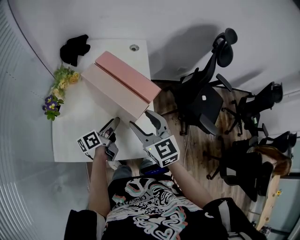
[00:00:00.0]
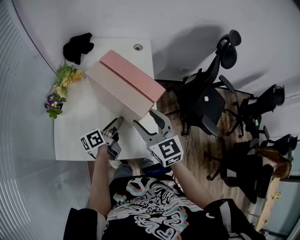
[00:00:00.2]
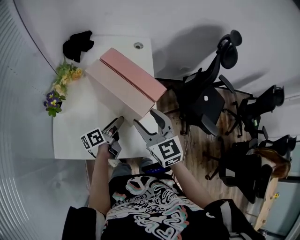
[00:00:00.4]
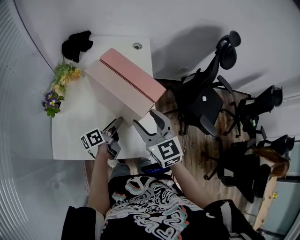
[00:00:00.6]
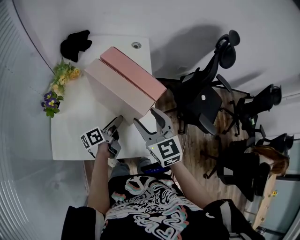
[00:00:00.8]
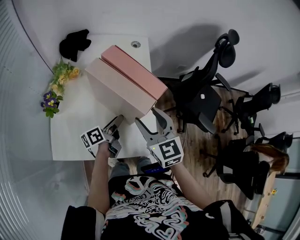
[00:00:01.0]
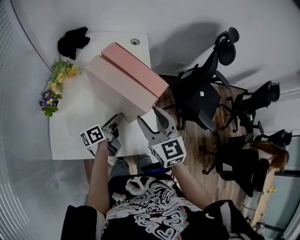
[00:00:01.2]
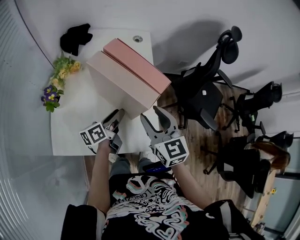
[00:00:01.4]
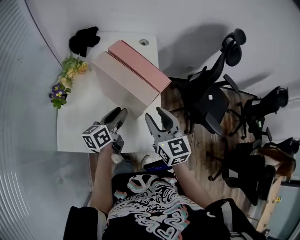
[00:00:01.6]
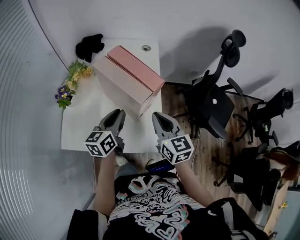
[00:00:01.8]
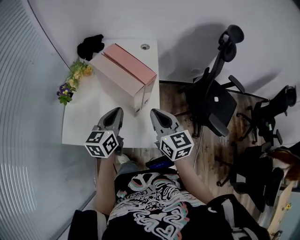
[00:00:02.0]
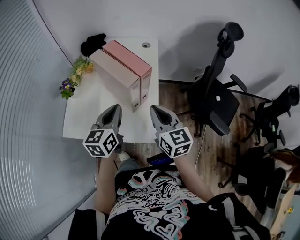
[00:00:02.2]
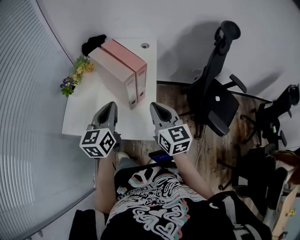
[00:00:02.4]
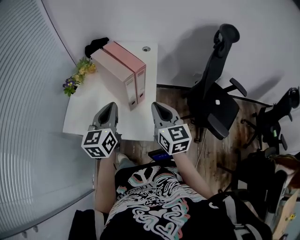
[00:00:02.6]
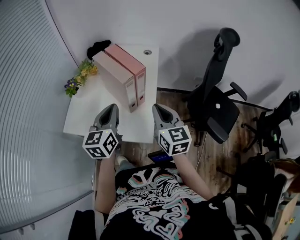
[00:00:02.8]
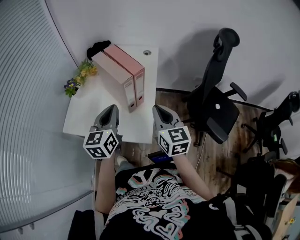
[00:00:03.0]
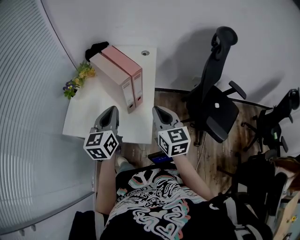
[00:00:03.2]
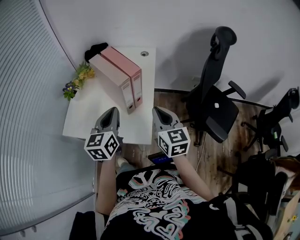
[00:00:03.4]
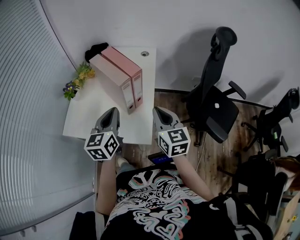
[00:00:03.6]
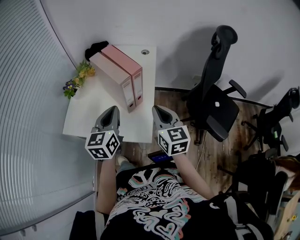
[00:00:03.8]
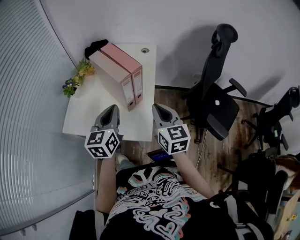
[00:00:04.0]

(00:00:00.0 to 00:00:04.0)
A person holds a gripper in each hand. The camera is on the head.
00:00:00.0 - 00:00:01.4: There are only small adjustments of the grippers.
00:00:01.4 - 00:00:02.6: The right gripper heads to the right and backward, covering some 10 cm, and closes. The left gripper moves upward and backward, about 20 cm, twists some 50 degrees clockwise, seen from behind, and closes.
00:00:02.6 - 00:00:04.0: The grippers make only small movements.

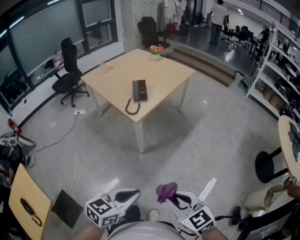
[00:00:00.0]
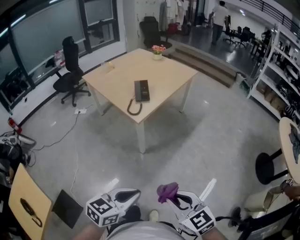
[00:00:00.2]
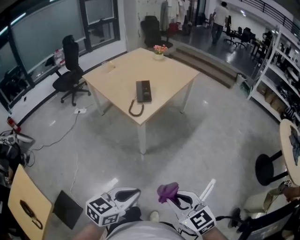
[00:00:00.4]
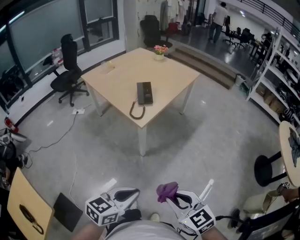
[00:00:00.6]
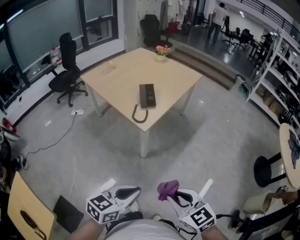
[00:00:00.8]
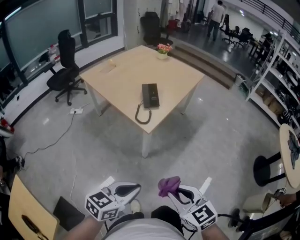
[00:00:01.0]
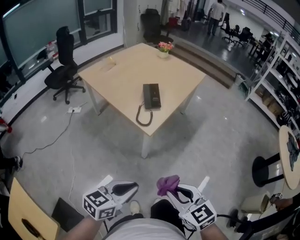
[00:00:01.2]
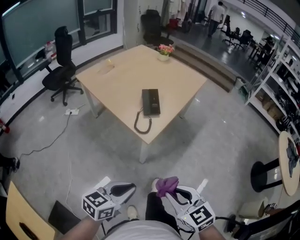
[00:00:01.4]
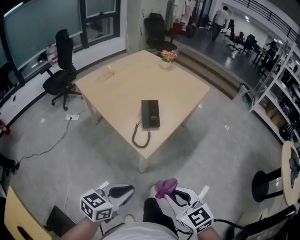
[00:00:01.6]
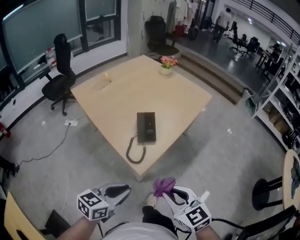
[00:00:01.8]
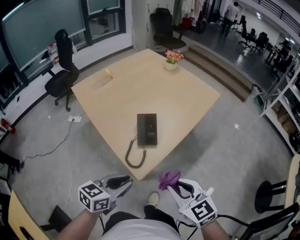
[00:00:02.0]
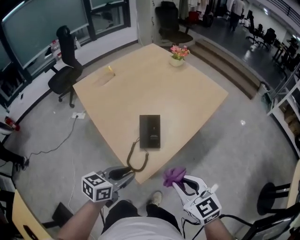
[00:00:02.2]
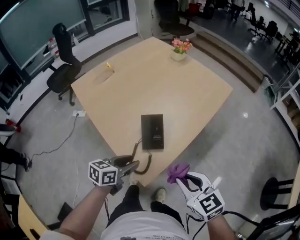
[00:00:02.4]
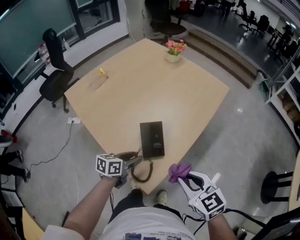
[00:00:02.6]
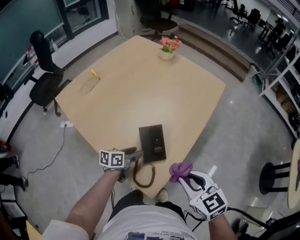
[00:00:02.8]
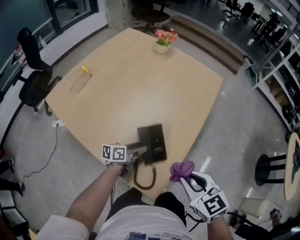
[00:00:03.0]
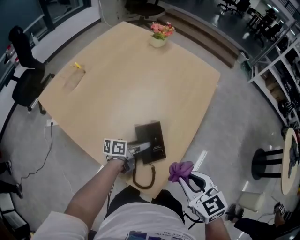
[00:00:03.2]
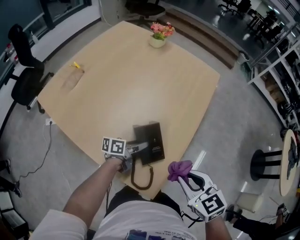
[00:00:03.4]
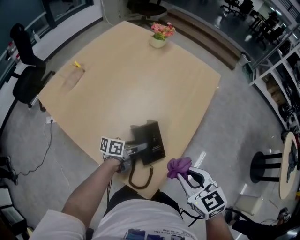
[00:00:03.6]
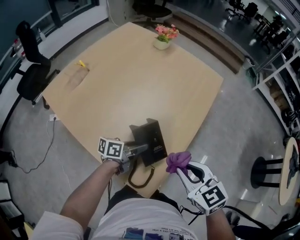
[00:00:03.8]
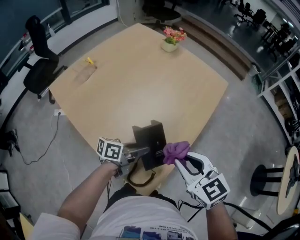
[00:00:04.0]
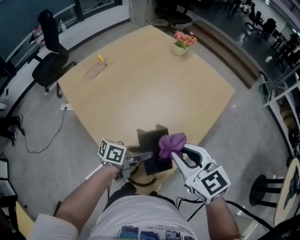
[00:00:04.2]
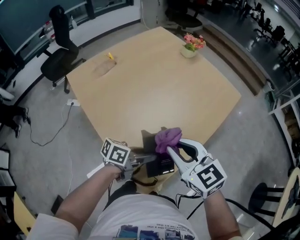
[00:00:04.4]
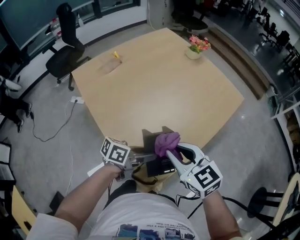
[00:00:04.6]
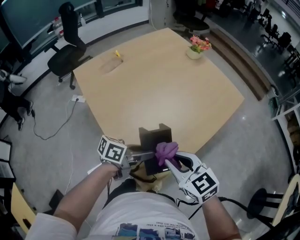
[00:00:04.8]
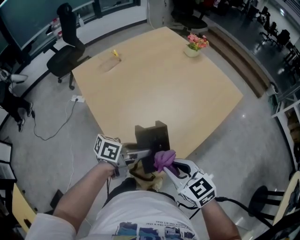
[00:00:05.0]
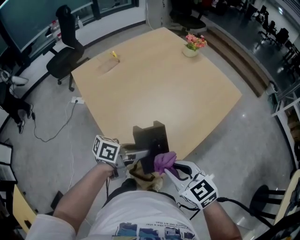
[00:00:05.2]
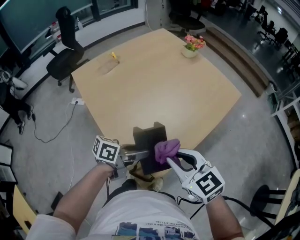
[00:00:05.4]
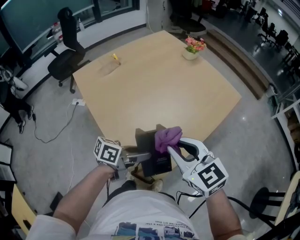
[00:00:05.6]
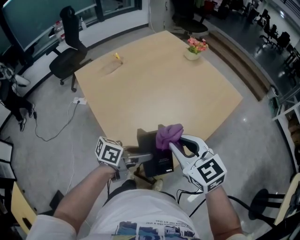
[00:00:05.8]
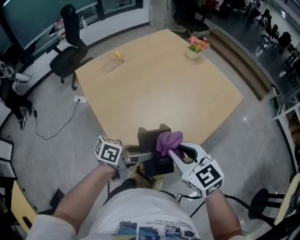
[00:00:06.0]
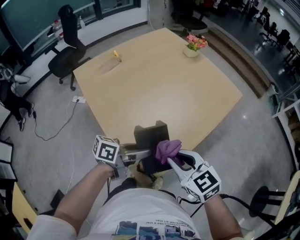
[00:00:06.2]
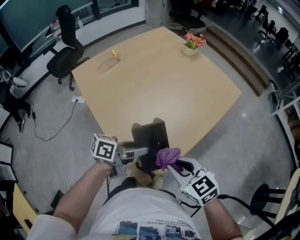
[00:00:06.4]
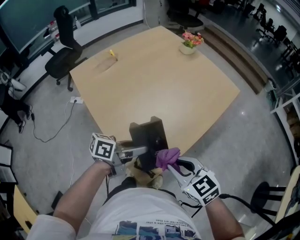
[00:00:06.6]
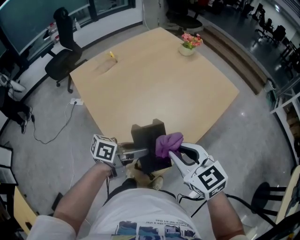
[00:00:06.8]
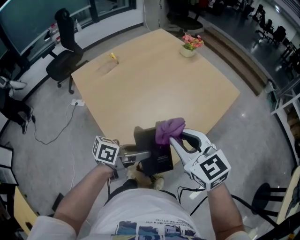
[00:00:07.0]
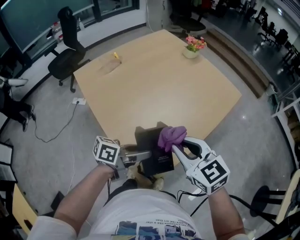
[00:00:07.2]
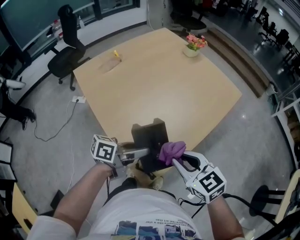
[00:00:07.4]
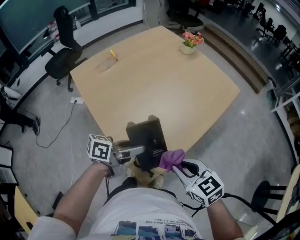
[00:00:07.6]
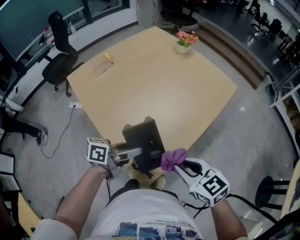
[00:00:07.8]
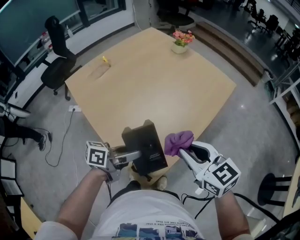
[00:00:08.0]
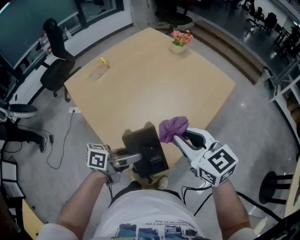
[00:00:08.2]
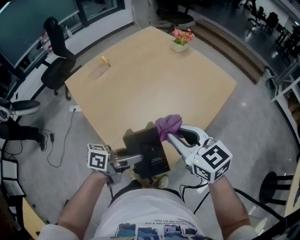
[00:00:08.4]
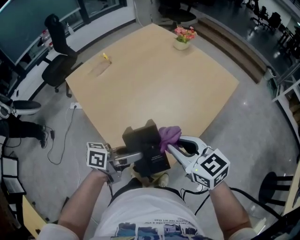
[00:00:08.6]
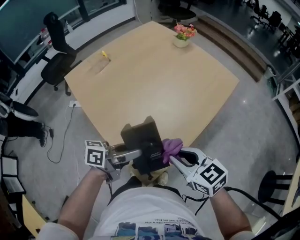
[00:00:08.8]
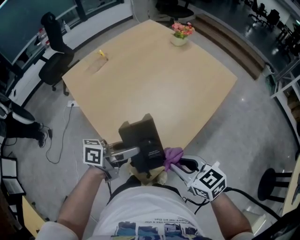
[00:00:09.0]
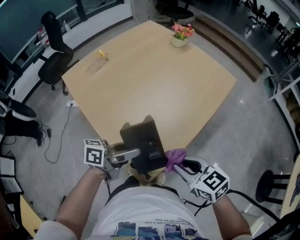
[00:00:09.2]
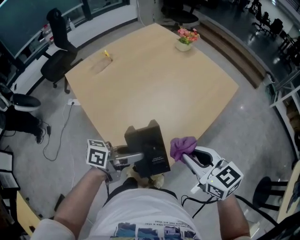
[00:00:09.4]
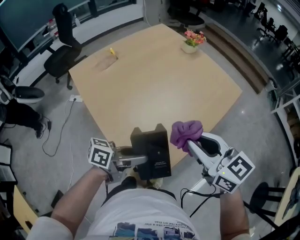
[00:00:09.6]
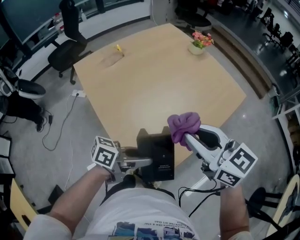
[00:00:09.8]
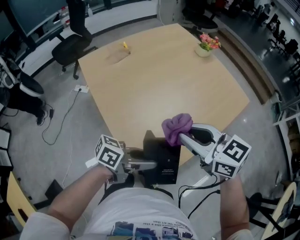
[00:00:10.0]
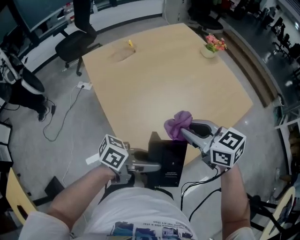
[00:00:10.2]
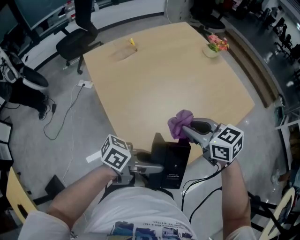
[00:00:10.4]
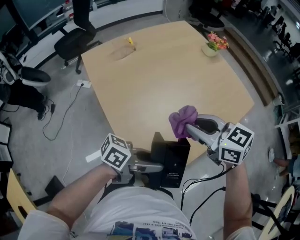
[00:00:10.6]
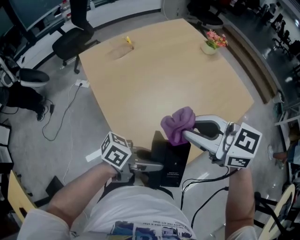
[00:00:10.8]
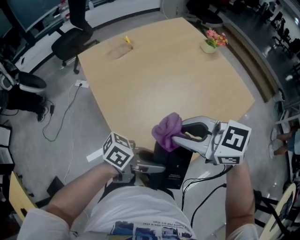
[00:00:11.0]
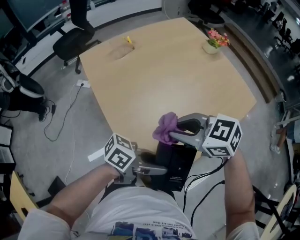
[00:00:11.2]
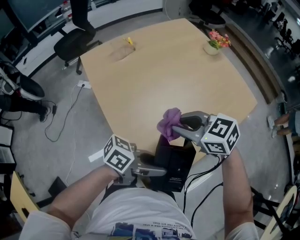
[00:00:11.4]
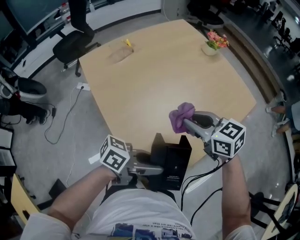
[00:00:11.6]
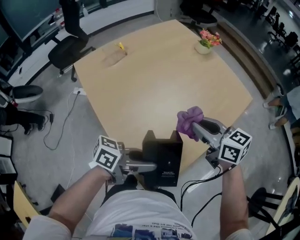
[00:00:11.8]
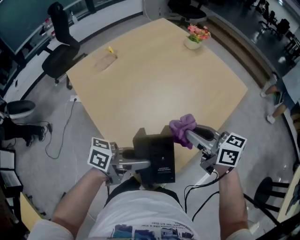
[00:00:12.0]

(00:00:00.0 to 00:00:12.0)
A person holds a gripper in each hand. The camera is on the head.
00:00:00.0 - 00:00:01.6: The left gripper shifts some 25 cm forward and to the left; the right gripper heads forward, covering roughly 25 cm.
00:00:01.6 - 00:00:03.0: The left gripper is displaced forward and downward by about 40 cm, swivels approximately 30 degrees, and opens. The right gripper shifts roughly 25 cm forward.
00:00:03.0 - 00:00:04.4: The left gripper goes some 10 cm upward. Meanwhile the right gripper moves to the left and forward, about 15 cm, and turns by about 20 degrees.
00:00:06.0 - 00:00:07.6: The right gripper moves up and down over some 10 cm, changing direction 2 times.
00:00:07.6 - 00:00:09.0: The right gripper moves approximately 10 cm upward and comes back.
00:00:09.0 - 00:00:10.4: The left gripper shifts by approximately 5 cm; the right gripper goes upward and returns, approximately 15 cm each way.
00:00:10.4 - 00:00:12.0: The right gripper goes upward and returns, roughly 10 cm each way, and turns by roughly 30 degrees. Meanwhile the left gripper moves about 5 cm.

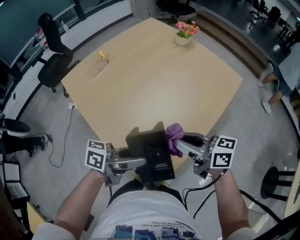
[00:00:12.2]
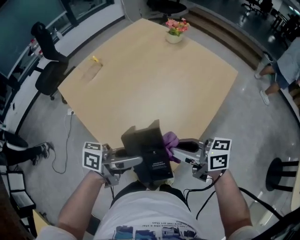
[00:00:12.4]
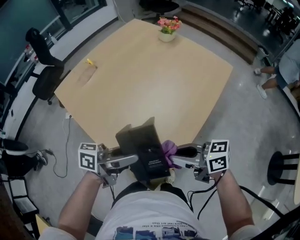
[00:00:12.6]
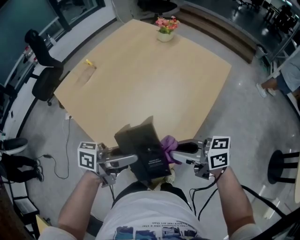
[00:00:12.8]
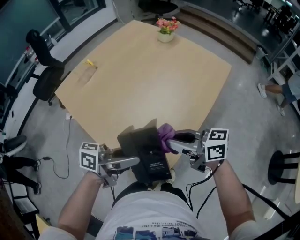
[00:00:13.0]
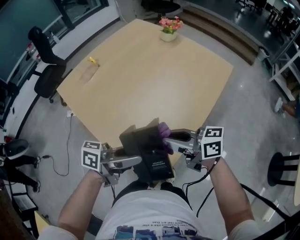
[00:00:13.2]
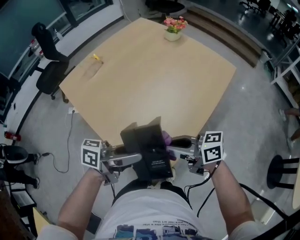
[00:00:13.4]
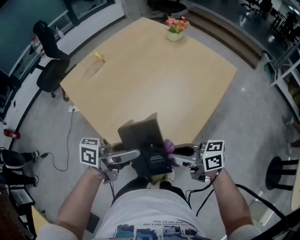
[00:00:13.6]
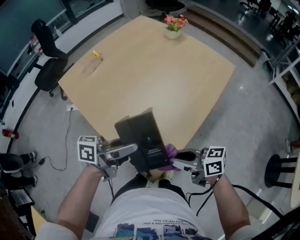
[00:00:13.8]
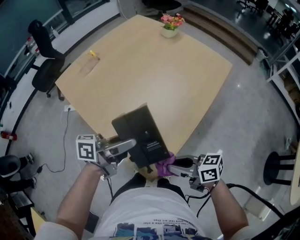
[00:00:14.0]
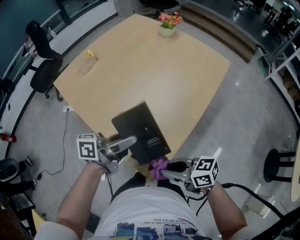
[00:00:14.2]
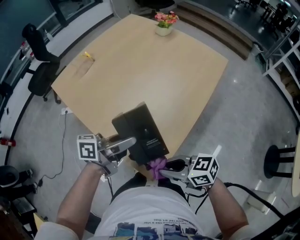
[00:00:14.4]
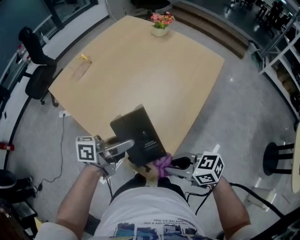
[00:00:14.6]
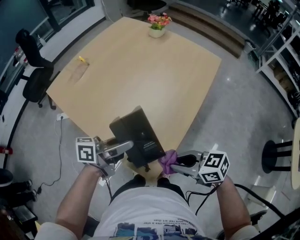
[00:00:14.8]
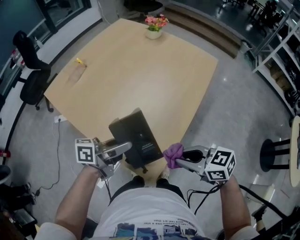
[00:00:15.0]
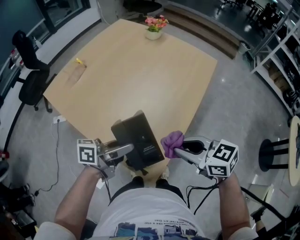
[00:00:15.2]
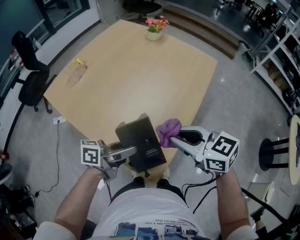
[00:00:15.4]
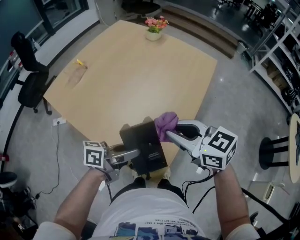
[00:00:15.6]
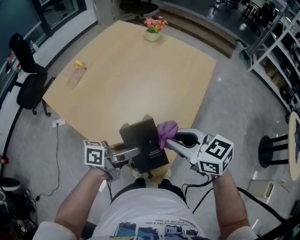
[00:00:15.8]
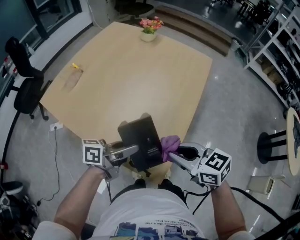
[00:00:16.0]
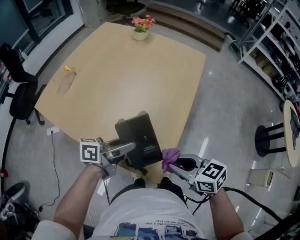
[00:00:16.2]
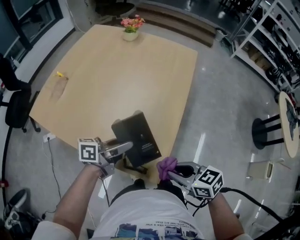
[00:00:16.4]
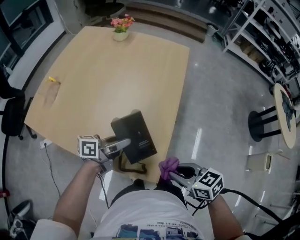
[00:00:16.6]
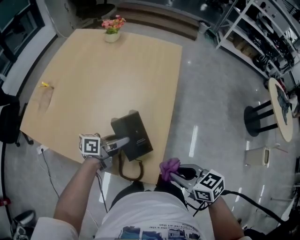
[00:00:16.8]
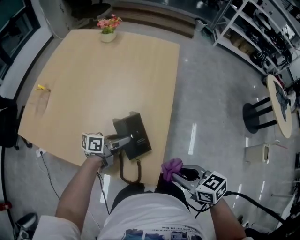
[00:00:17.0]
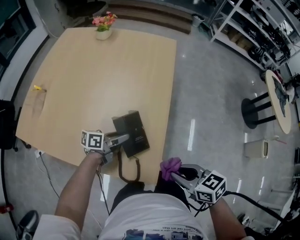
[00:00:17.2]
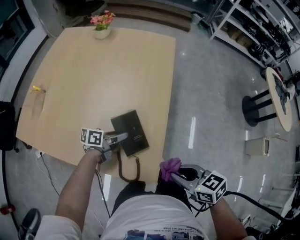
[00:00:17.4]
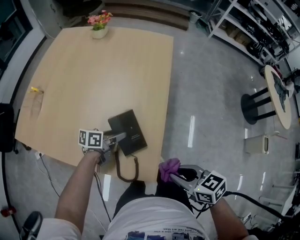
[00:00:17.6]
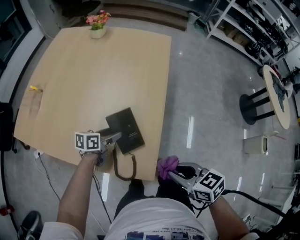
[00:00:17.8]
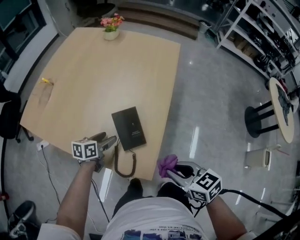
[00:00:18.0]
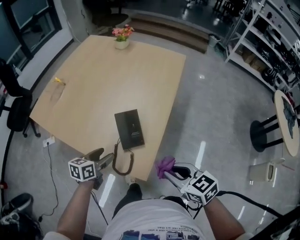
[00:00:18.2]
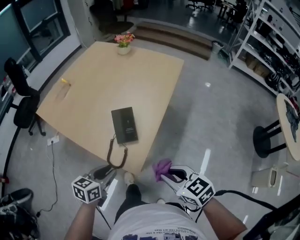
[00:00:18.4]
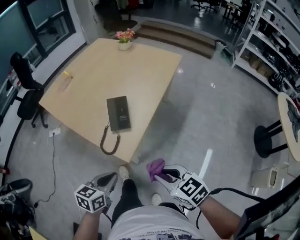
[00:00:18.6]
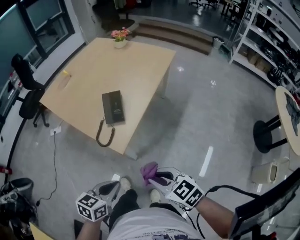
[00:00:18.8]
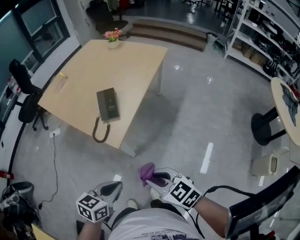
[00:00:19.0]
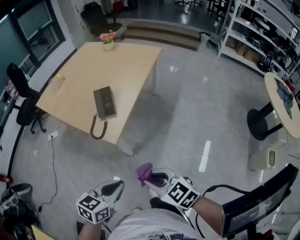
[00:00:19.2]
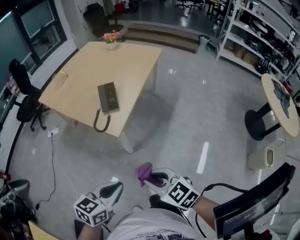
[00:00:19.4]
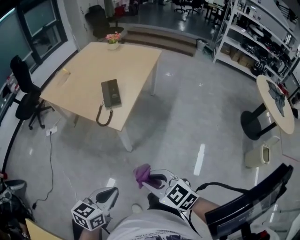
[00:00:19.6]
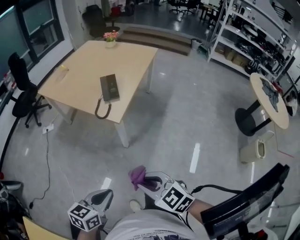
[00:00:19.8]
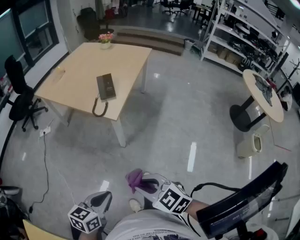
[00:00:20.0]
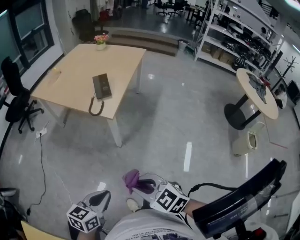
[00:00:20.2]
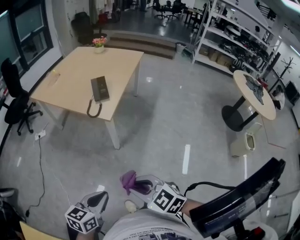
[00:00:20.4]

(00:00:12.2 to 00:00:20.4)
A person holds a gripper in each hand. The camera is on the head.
00:00:12.2 - 00:00:13.8: The right gripper ends up approximately 15 cm from where it was.
00:00:13.8 - 00:00:15.4: The right gripper is displaced upward by about 10 cm, and turns by approximately 40 degrees.
00:00:15.4 - 00:00:17.2: The right gripper changes place by approximately 20 cm, and turns by approximately 30 degrees. The left gripper moves downward, some 15 cm, and swivels some 20 degrees.
00:00:17.2 - 00:00:18.8: The right gripper moves some 15 cm, and changes its angle by some 30 degrees, while the left gripper changes place by approximately 40 cm, changes its angle by approximately 50 degrees, and closes its fingers.
00:00:18.8 - 00:00:20.4: The right gripper moves backward and to the left, approximately 25 cm. The left gripper shifts some 25 cm backward.
